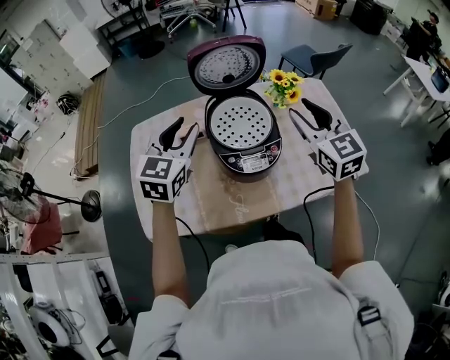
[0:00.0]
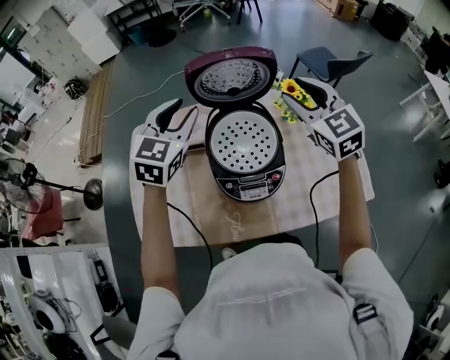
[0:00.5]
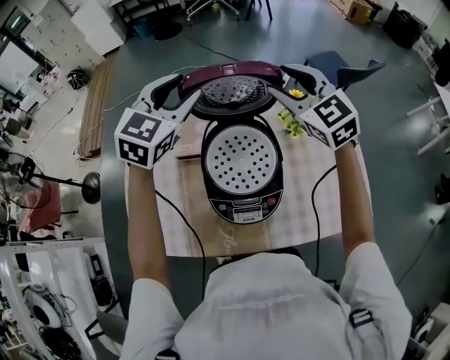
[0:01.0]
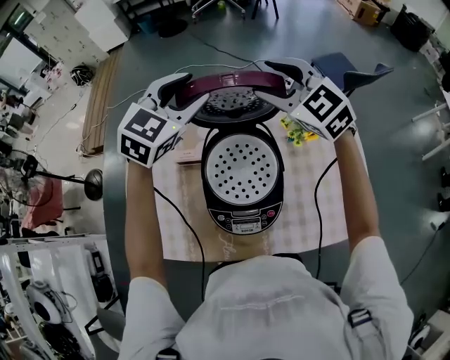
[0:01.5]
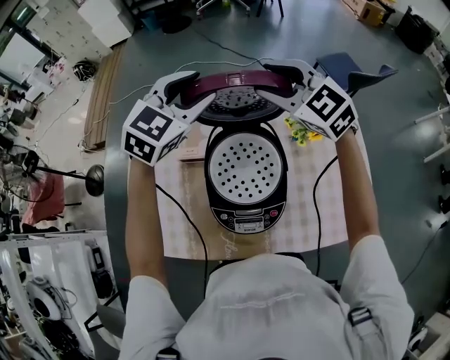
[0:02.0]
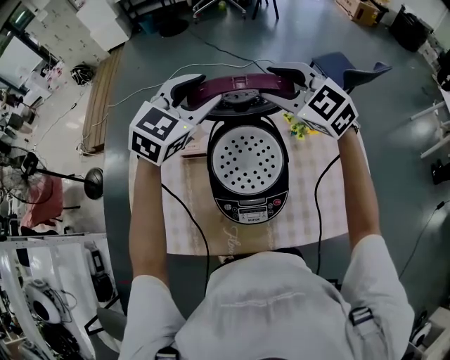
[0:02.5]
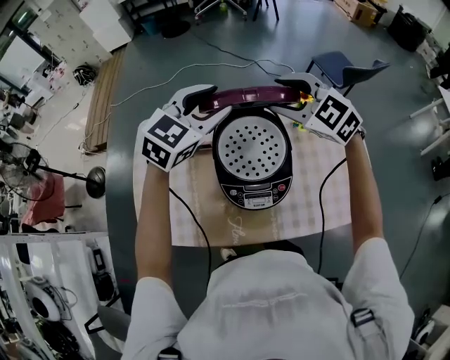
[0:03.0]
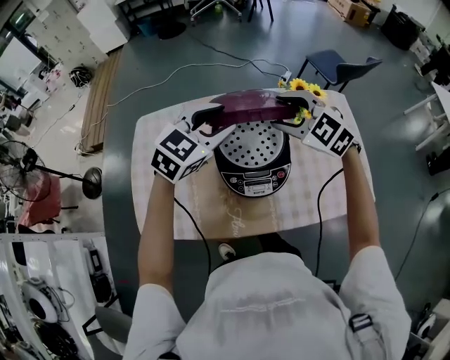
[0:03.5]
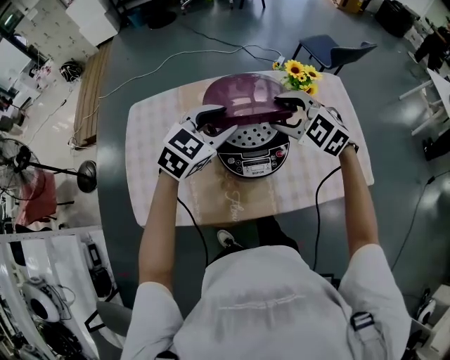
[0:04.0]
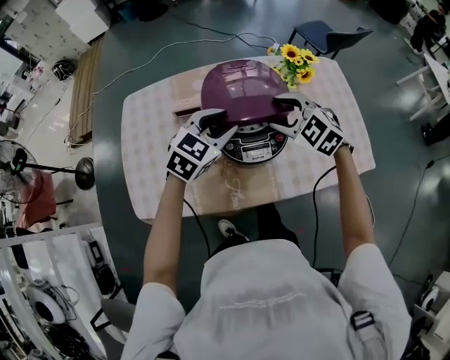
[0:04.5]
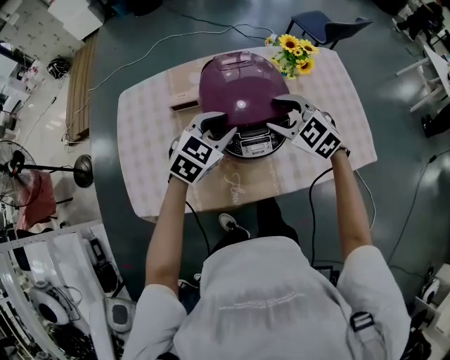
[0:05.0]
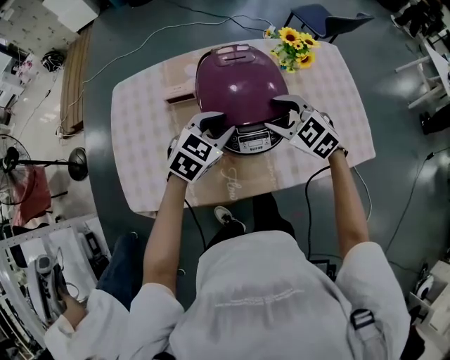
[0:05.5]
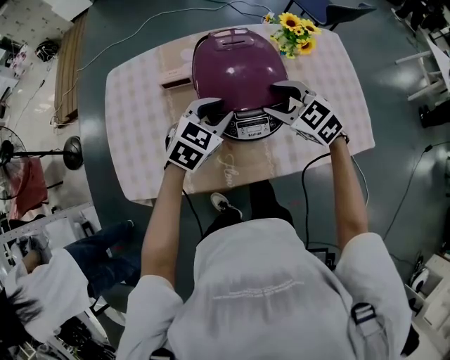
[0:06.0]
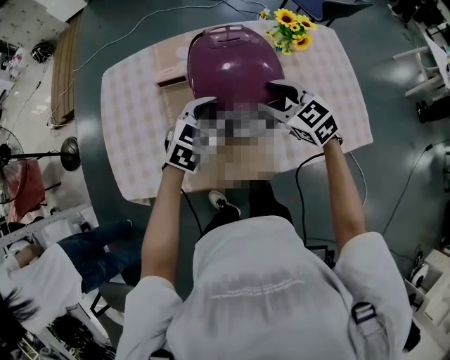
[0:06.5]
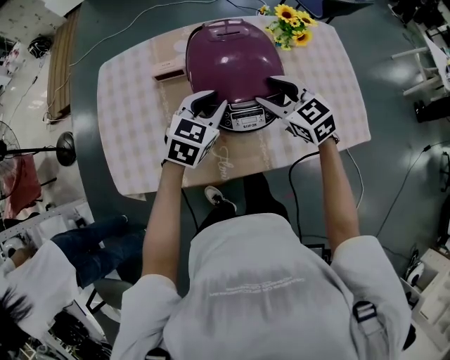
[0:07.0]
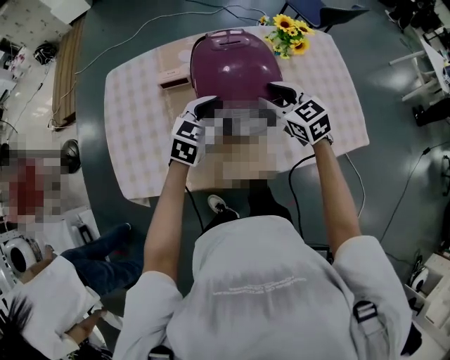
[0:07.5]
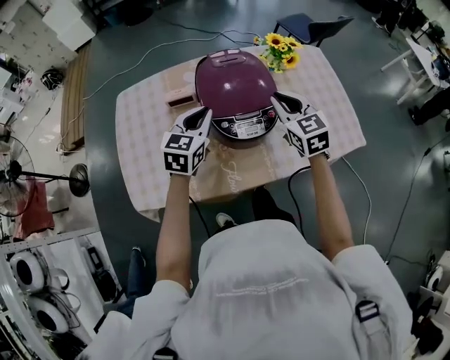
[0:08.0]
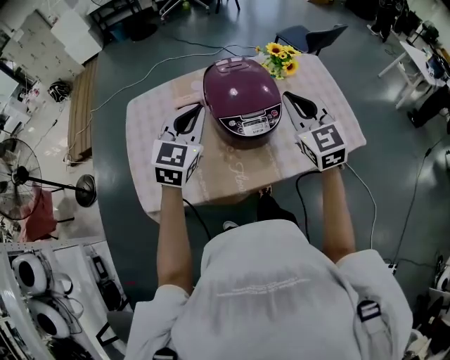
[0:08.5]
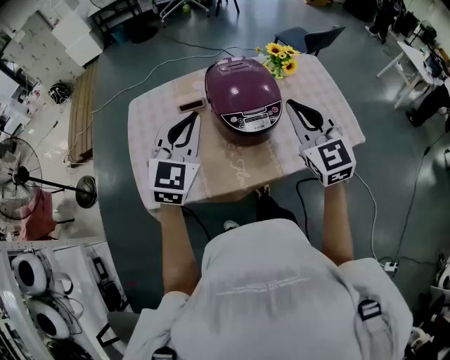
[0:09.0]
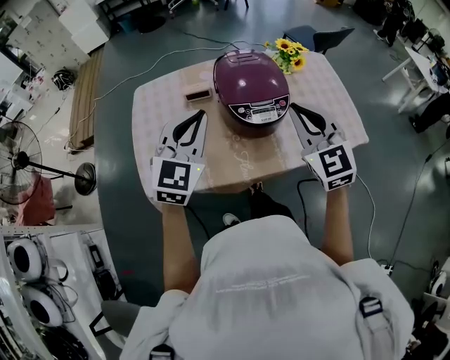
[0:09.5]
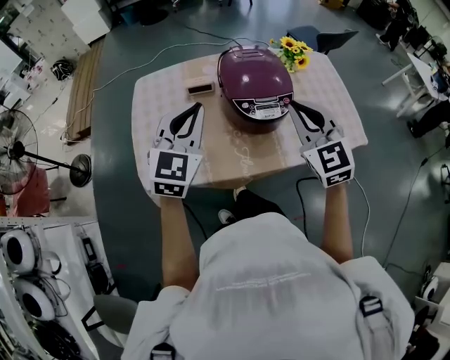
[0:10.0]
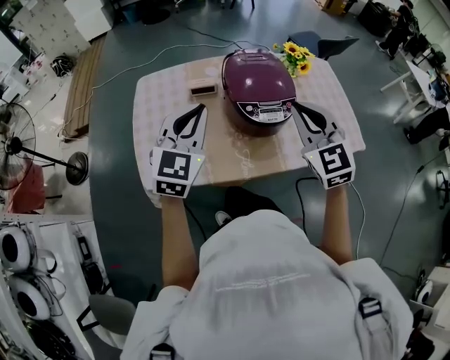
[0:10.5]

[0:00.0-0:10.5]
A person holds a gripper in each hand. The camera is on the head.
0:00.0 to 0:02.0: Both grippers move forward, approximately 25 cm. The right gripper changes its angle by roughly 40 degrees.
0:02.0 to 0:04.0: Both grippers travel together backward and downward, about 20 cm.
0:04.0 to 0:06.5: Both grippers move downward, some 10 cm. The right gripper turns by some 30 degrees.
0:06.5 to 0:08.5: The right gripper moves upward and backward, about 20 cm, rotates some 40 degrees, and closes. The left gripper travels upward and to the left by some 15 cm, rotates some 20 degrees, and closes its fingers.
0:08.5 to 0:10.5: Both grippers travel together backward and to the left, approximately 10 cm.

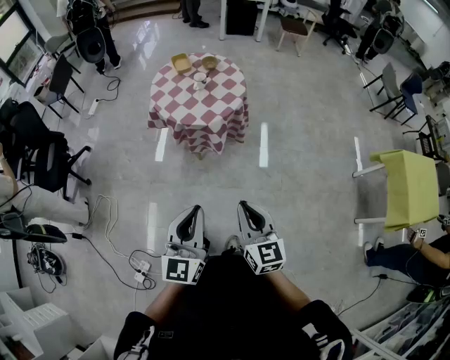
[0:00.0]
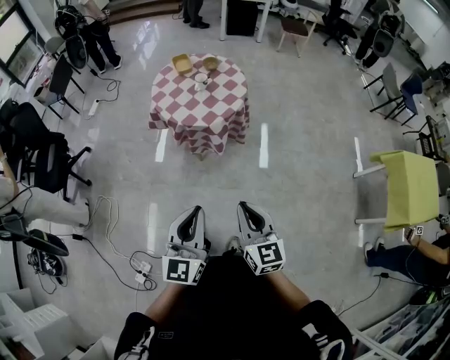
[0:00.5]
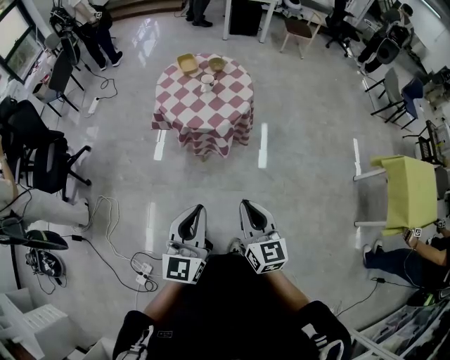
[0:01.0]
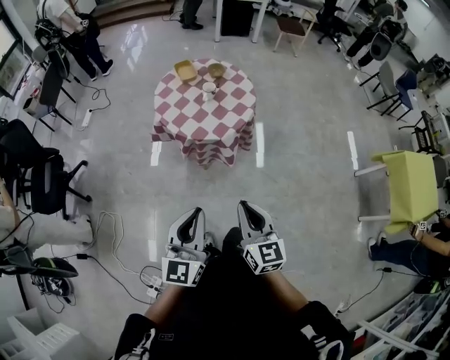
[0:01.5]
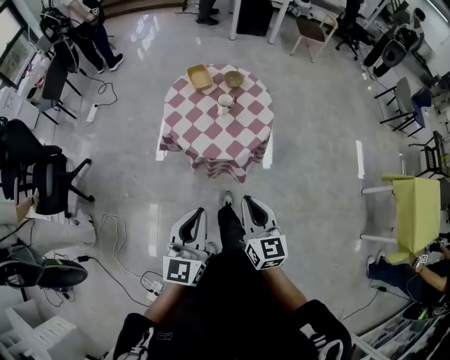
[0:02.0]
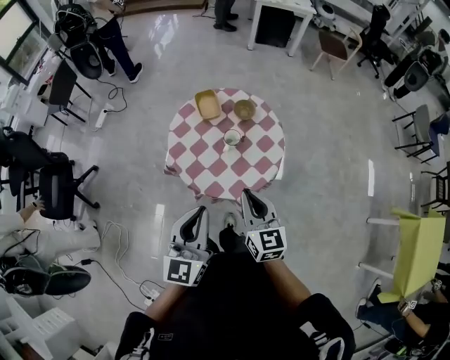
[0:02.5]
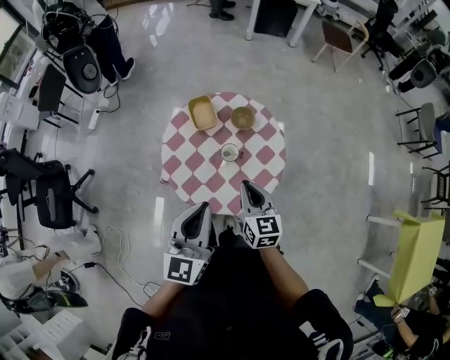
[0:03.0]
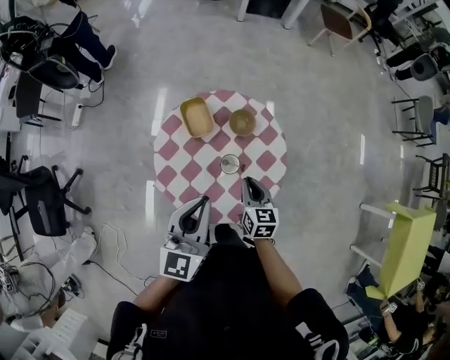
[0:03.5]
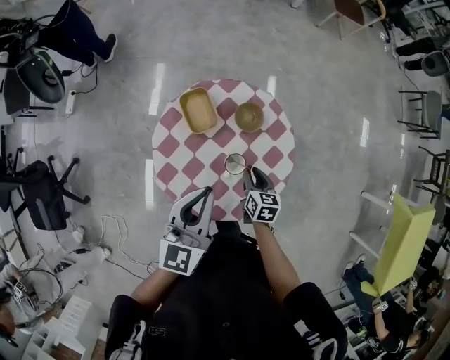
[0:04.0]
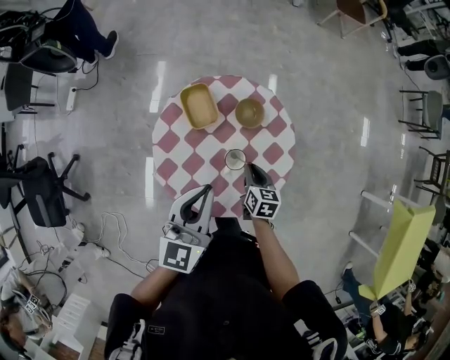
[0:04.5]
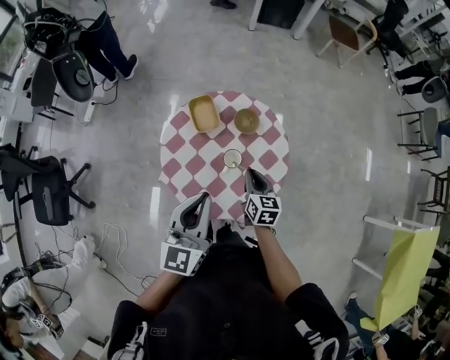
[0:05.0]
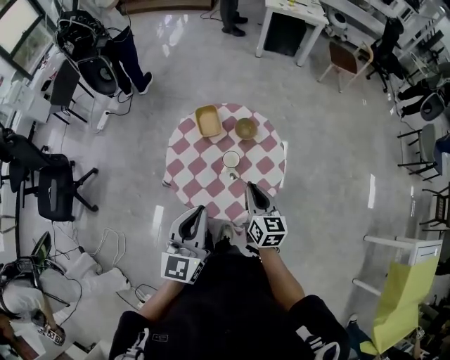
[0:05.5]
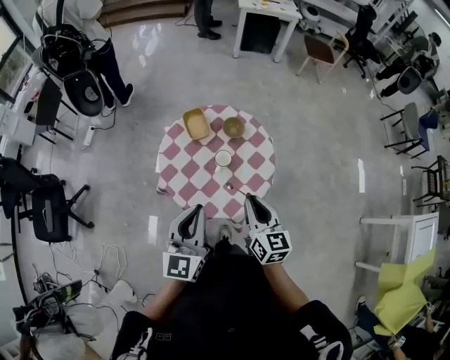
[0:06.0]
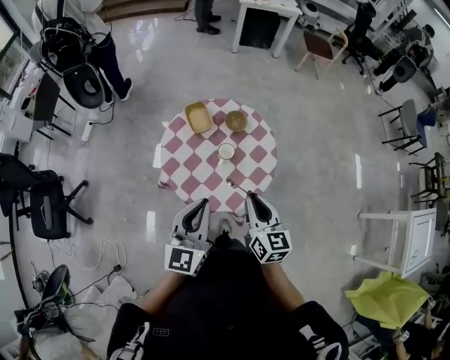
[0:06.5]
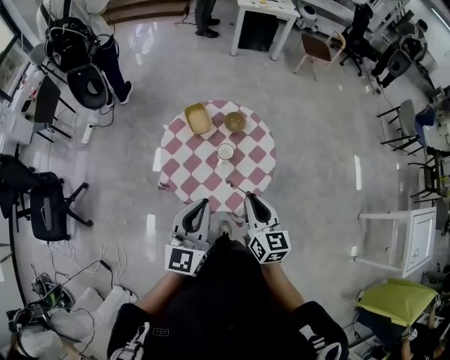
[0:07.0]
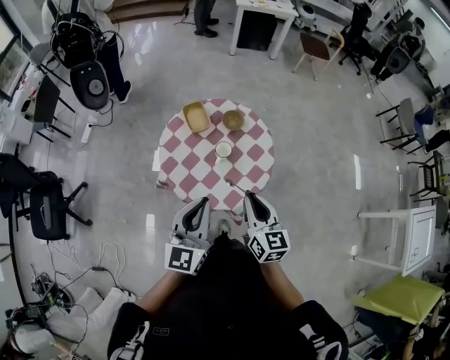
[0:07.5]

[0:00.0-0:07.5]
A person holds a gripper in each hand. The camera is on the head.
0:00.0 to 0:02.0: The grippers both shift forward and to the left by roughly 30 cm.
0:02.0 to 0:04.0: The two grippers travel together, forward, approximately 50 cm. The right gripper is displaced downward by some 25 cm, angles its fingers downward, by about 30 degrees, and opens its fingers.
0:04.0 to 0:05.5: The right gripper travels upward and backward by some 25 cm, and rotates some 30 degrees. The left gripper shifts roughly 20 cm backward and upward.
0:05.5 to 0:07.5: The right gripper moves backward and upward, about 10 cm.

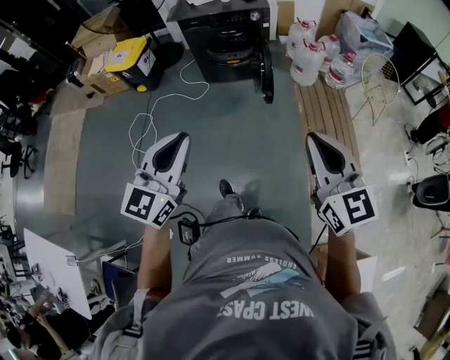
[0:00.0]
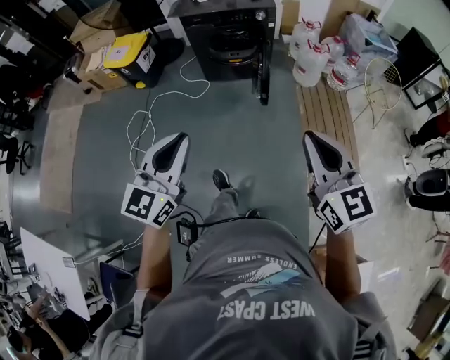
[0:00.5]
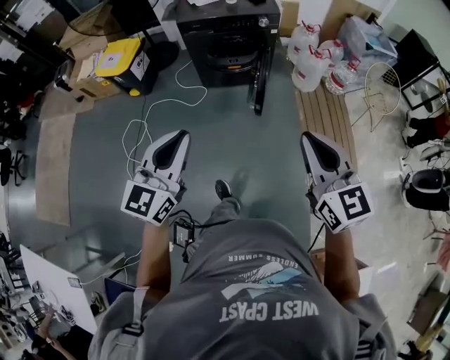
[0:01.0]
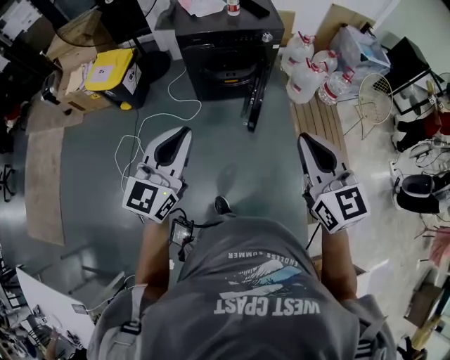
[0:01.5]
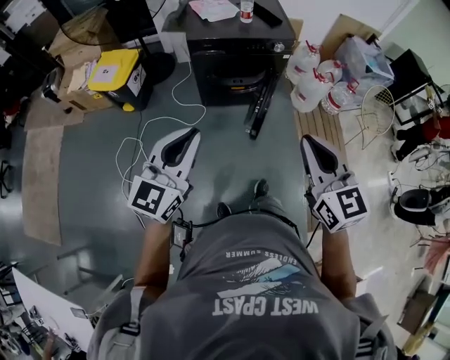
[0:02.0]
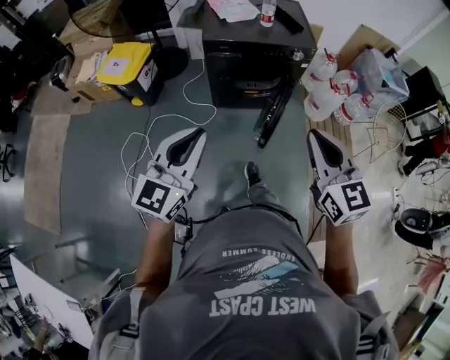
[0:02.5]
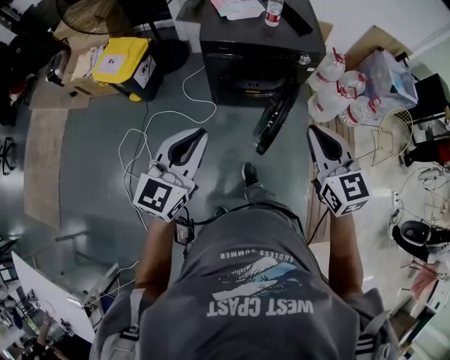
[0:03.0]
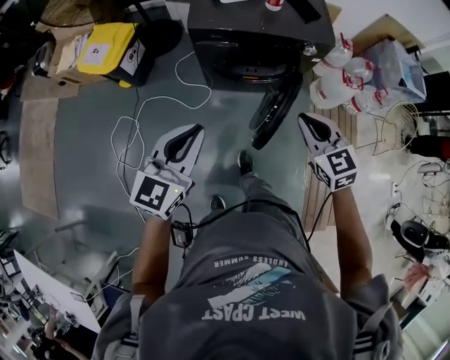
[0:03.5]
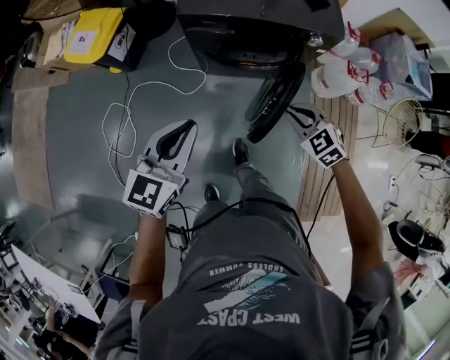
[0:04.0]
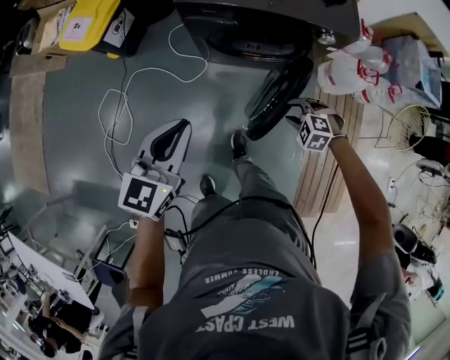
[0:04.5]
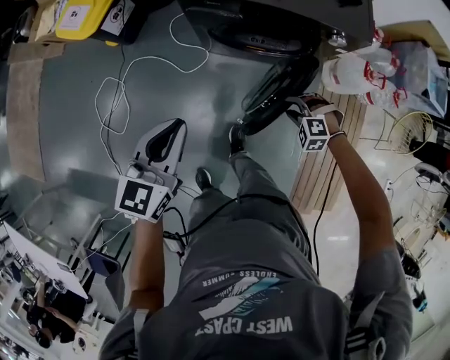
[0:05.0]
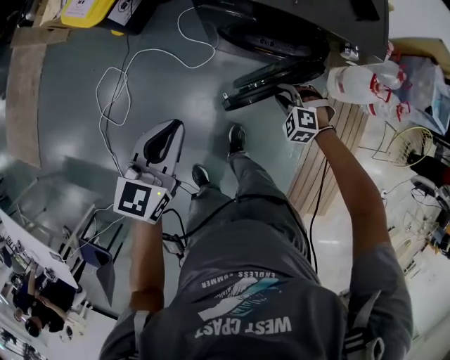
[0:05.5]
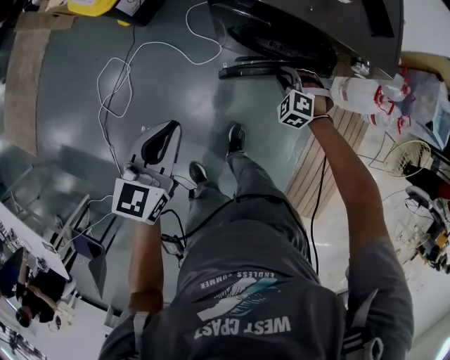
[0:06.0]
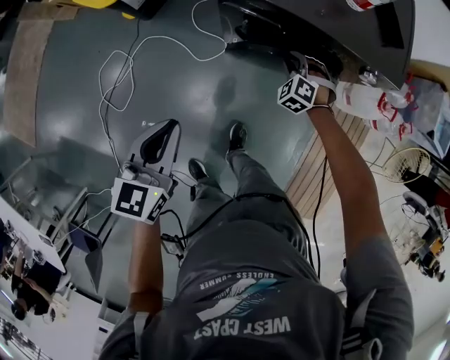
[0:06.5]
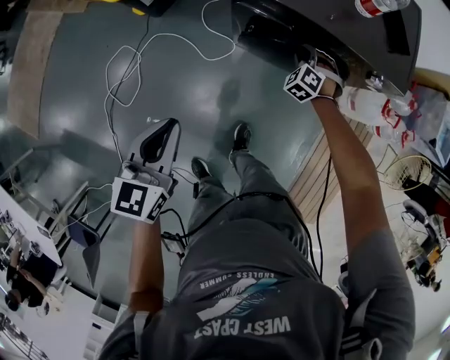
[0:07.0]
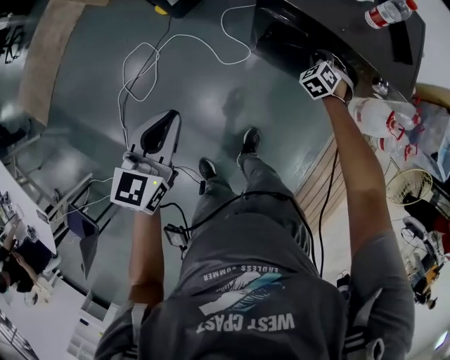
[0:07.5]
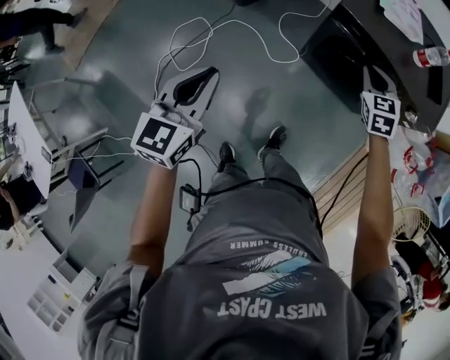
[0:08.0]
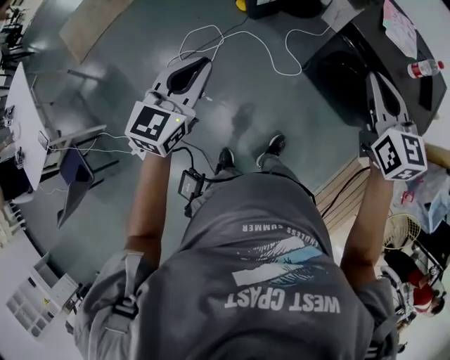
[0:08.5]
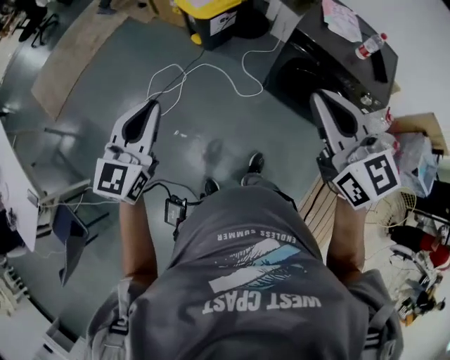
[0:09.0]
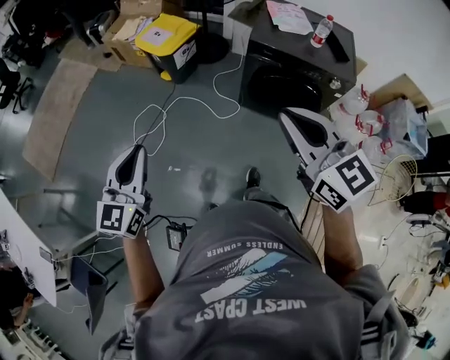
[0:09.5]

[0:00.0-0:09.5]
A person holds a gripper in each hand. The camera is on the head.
0:00.0 to 0:02.0: Both grippers travel together forward and to the left, approximately 35 cm.
0:02.0 to 0:04.0: The left gripper travels forward and downward by some 30 cm, and swivels some 20 degrees, while the right gripper shifts some 50 cm forward and downward, and tilts its fingers approximately 40 degrees downward.
0:04.0 to 0:05.5: The right gripper goes approximately 20 cm downward and forward, and turns by about 40 degrees, while the left gripper shifts some 5 cm downward.
0:05.5 to 0:07.5: The left gripper moves to the left, roughly 10 cm; the right gripper shifts about 20 cm forward, and changes its angle by approximately 30 degrees.
0:07.5 to 0:09.5: The left gripper changes place by roughly 30 cm, and turns by some 20 degrees. The right gripper travels upward by roughly 50 cm, and tilts its fingers about 40 degrees upward.
